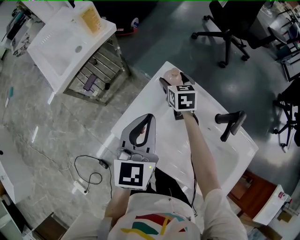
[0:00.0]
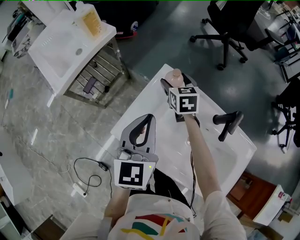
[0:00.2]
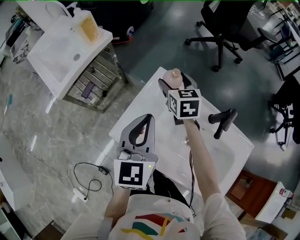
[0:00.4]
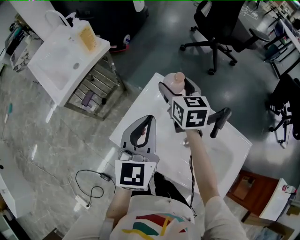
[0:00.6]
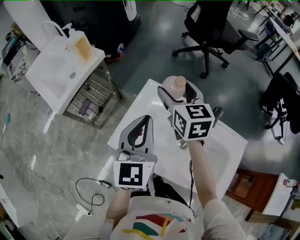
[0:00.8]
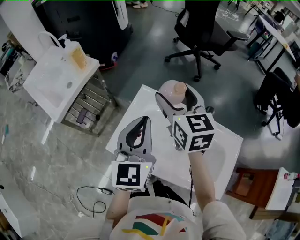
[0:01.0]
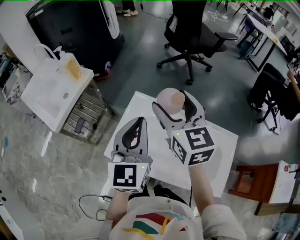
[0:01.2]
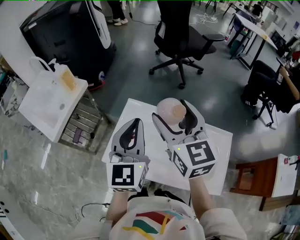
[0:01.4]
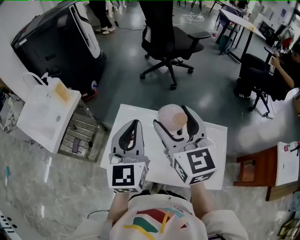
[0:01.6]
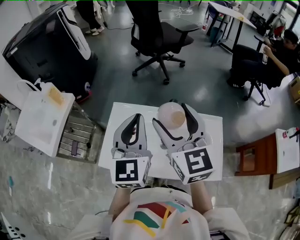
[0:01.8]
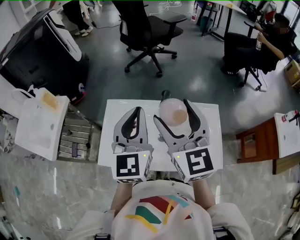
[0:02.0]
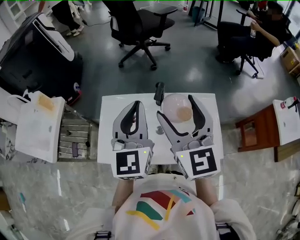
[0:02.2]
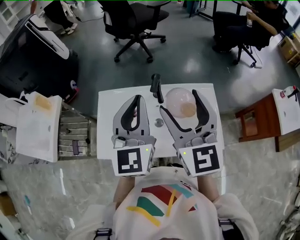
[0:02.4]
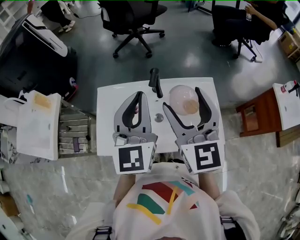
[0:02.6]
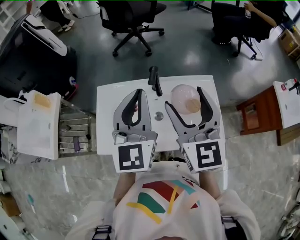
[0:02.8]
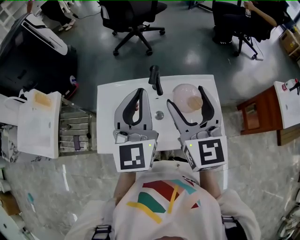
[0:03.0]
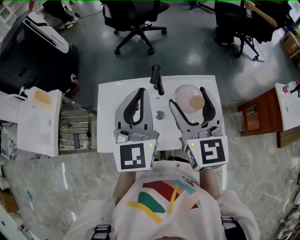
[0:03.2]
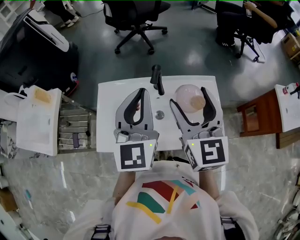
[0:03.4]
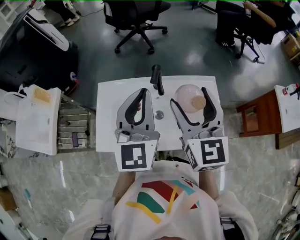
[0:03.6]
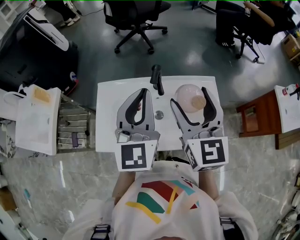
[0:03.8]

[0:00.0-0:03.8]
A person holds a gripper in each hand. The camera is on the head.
0:00.0 to 0:01.2: The left gripper travels upward by some 10 cm. The right gripper goes about 35 cm upward and backward, and changes its angle by approximately 30 degrees.
0:01.2 to 0:02.6: The right gripper changes place by some 25 cm, and turns by roughly 30 degrees. The left gripper shifts by about 15 cm, and changes its angle by roughly 20 degrees.
0:02.6 to 0:03.8: The grippers make only small movements.

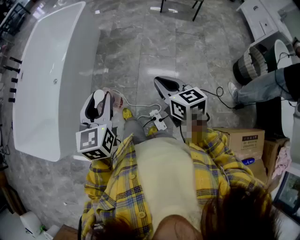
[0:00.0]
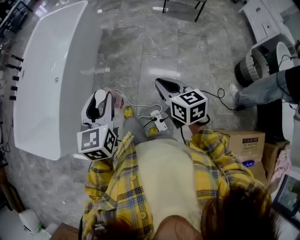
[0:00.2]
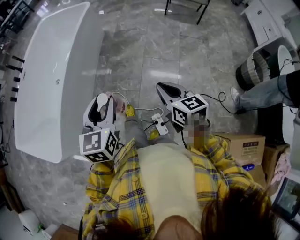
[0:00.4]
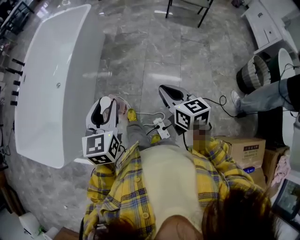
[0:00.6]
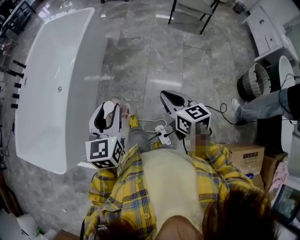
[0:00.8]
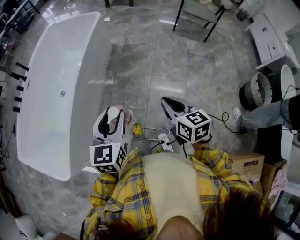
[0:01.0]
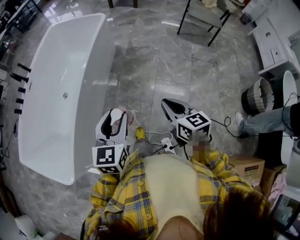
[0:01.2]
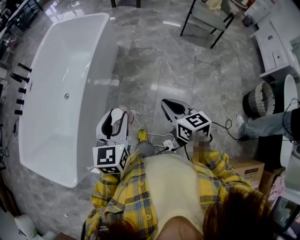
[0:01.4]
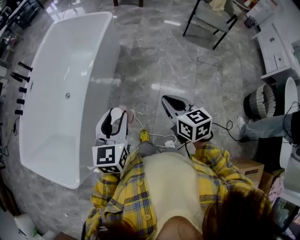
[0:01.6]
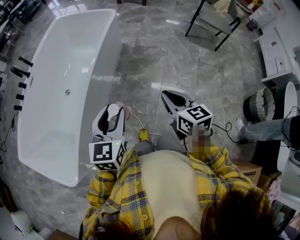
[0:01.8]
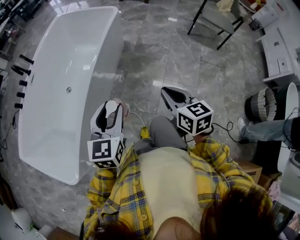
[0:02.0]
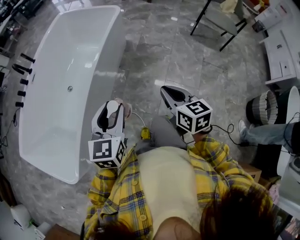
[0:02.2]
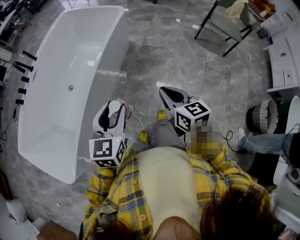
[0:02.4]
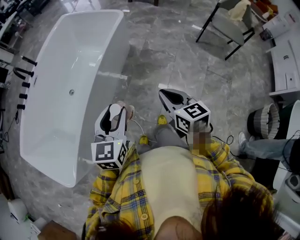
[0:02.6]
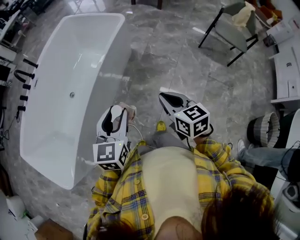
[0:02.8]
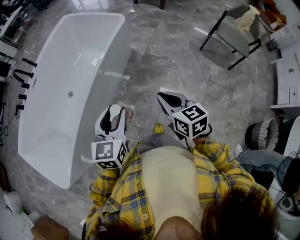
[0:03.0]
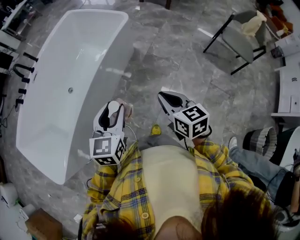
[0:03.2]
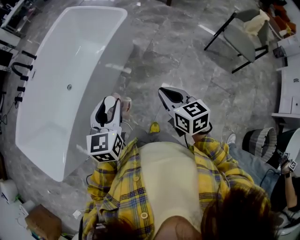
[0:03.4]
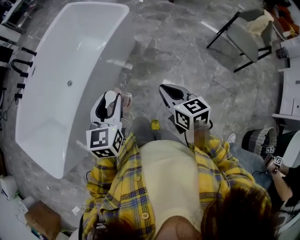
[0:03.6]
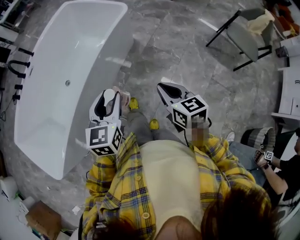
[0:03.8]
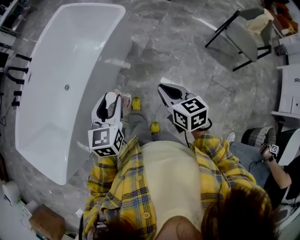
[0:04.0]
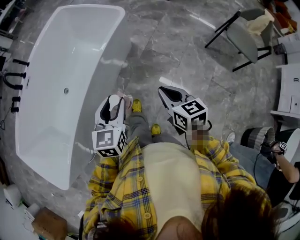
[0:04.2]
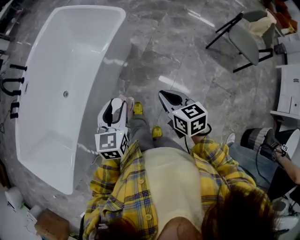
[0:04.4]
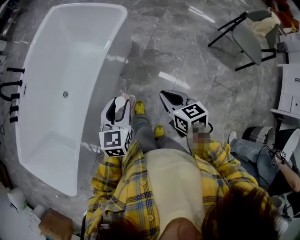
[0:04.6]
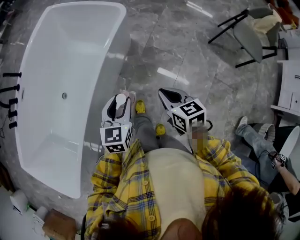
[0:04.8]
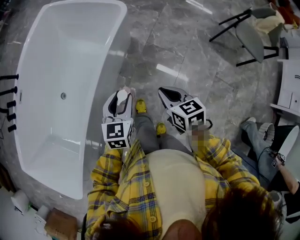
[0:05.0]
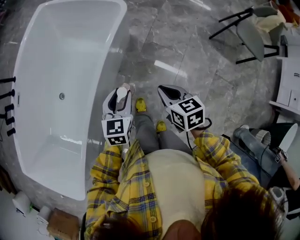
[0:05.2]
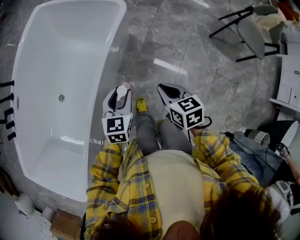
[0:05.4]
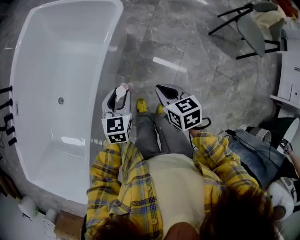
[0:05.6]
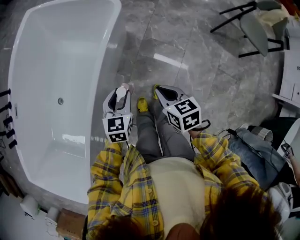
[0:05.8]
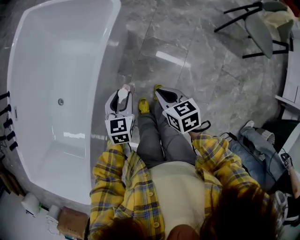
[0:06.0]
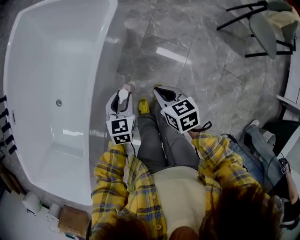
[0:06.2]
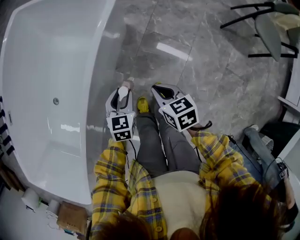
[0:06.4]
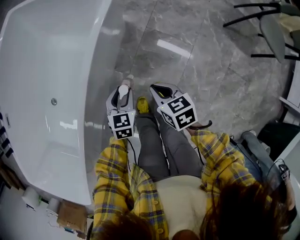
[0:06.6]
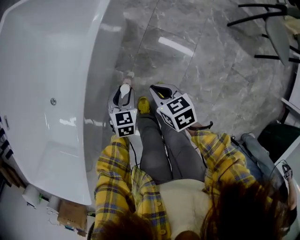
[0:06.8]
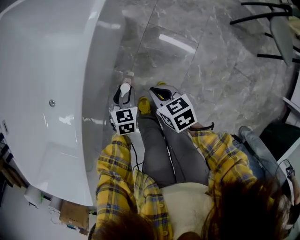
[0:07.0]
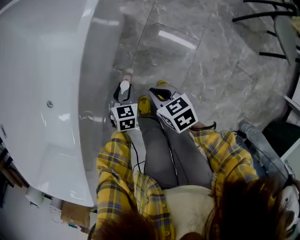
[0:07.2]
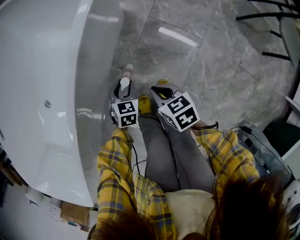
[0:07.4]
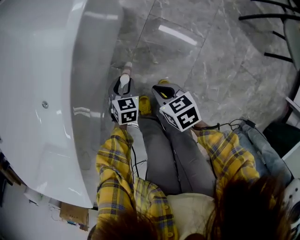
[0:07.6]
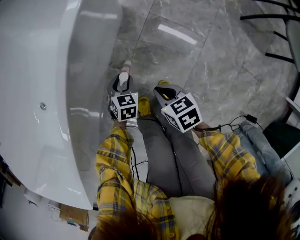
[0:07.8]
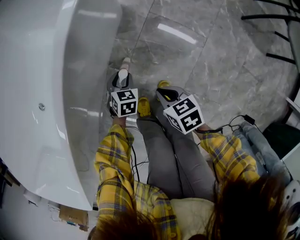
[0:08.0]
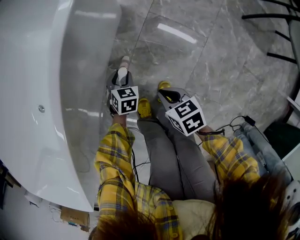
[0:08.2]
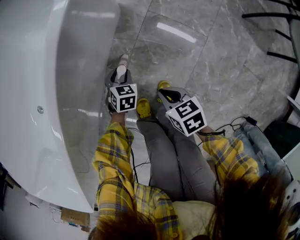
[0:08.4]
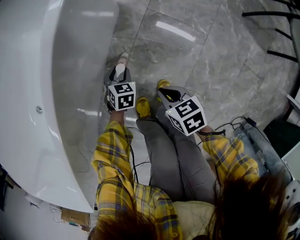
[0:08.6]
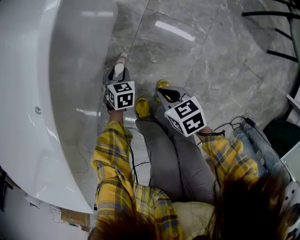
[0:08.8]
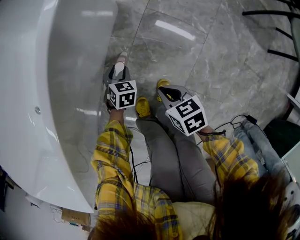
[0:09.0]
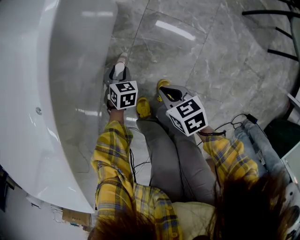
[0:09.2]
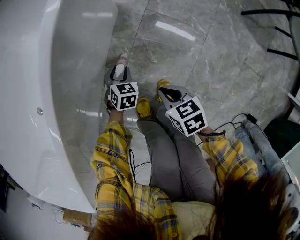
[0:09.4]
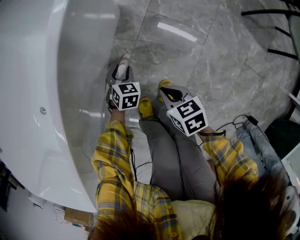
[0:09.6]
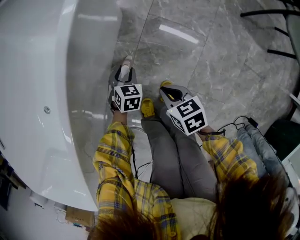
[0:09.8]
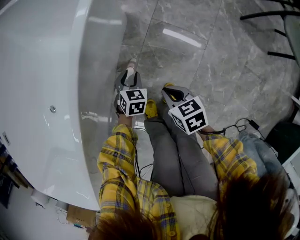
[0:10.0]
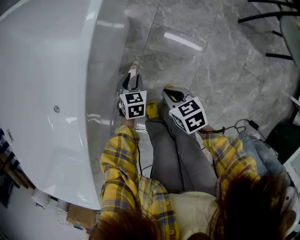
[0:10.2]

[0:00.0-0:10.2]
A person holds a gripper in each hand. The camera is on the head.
0:00.0 to 0:01.4: The left gripper heads forward, covering some 20 cm; the right gripper moves forward and to the left, about 20 cm.
0:01.4 to 0:03.0: The two grippers go some 20 cm forward.
0:03.0 to 0:04.4: Both grippers travel together forward and downward, some 15 cm.
0:04.4 to 0:05.8: Both grippers move downward and forward, roughly 20 cm.
0:05.8 to 0:07.2: Both grippers travel together downward, approximately 25 cm.
0:07.2 to 0:08.8: The two grippers go some 15 cm downward.
0:08.8 to 0:10.2: The right gripper shifts some 5 cm upward, while the left gripper goes approximately 10 cm upward.

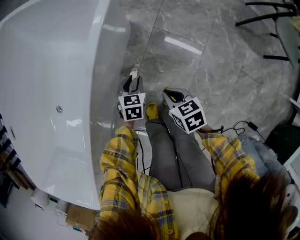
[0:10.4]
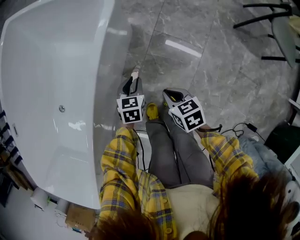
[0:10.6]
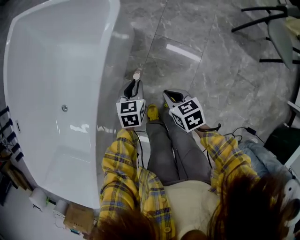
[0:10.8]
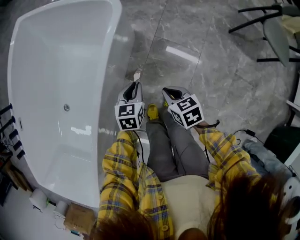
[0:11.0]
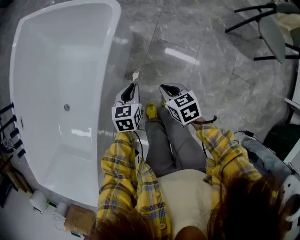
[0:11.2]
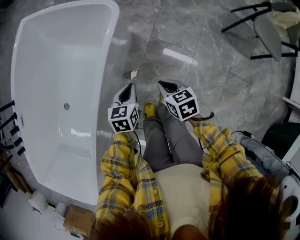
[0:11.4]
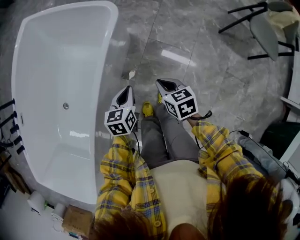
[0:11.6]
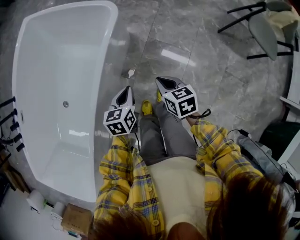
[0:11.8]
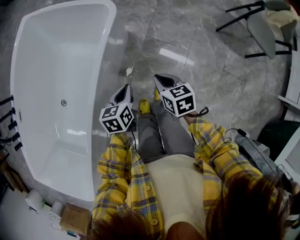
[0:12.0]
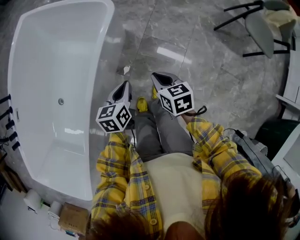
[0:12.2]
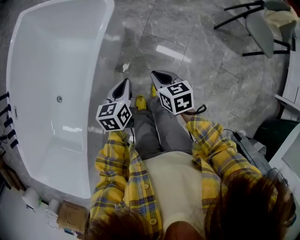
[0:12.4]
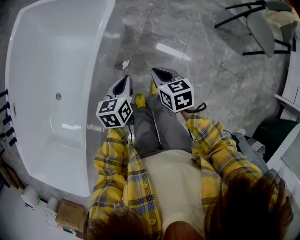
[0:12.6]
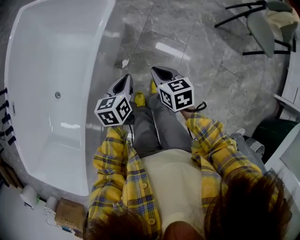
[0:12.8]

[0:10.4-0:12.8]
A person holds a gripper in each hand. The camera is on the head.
0:10.4 to 0:11.6: Both grippers move upward, about 20 cm. The left gripper closes.
0:11.6 to 0:12.8: The grippers stay close to where they were, moving slightly.

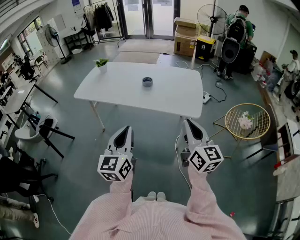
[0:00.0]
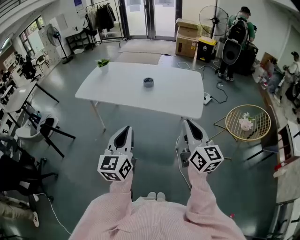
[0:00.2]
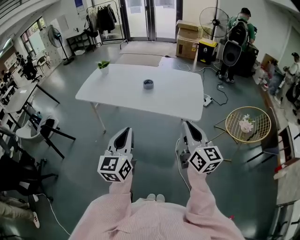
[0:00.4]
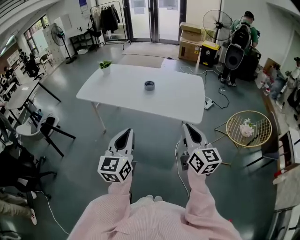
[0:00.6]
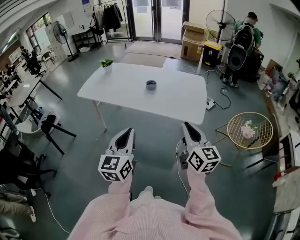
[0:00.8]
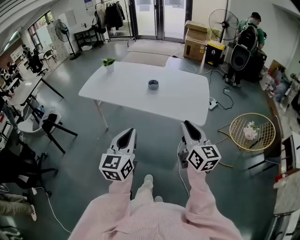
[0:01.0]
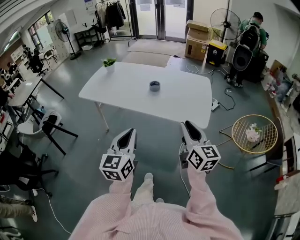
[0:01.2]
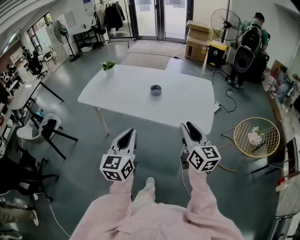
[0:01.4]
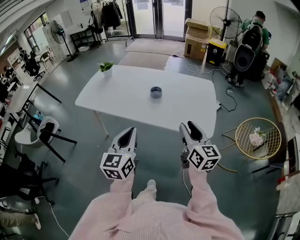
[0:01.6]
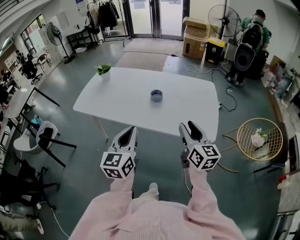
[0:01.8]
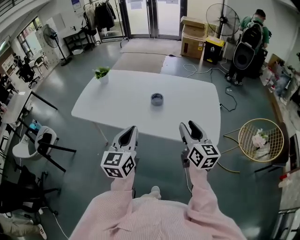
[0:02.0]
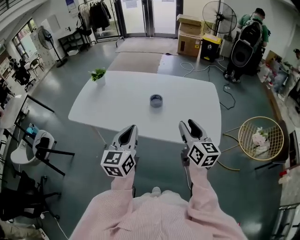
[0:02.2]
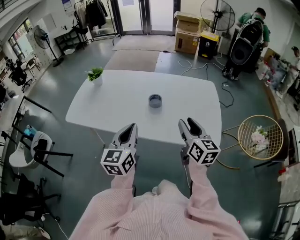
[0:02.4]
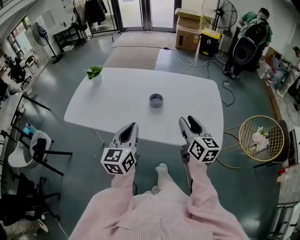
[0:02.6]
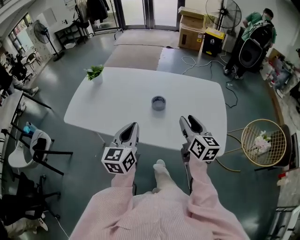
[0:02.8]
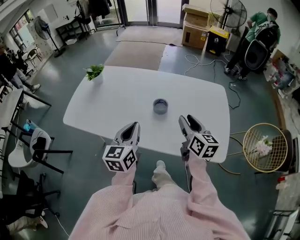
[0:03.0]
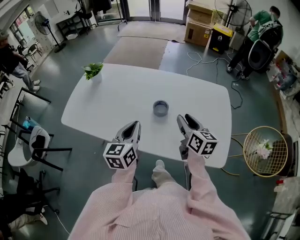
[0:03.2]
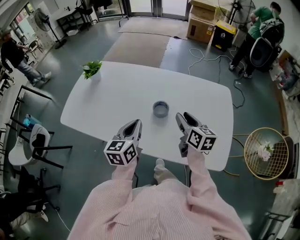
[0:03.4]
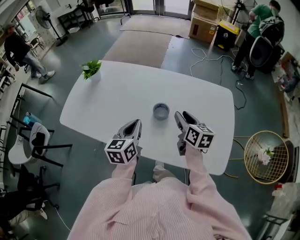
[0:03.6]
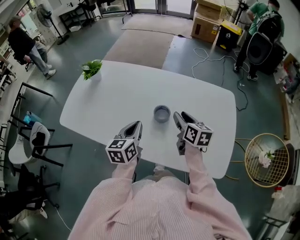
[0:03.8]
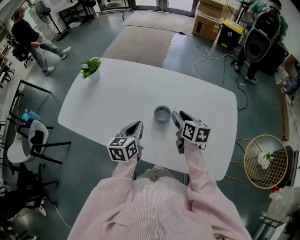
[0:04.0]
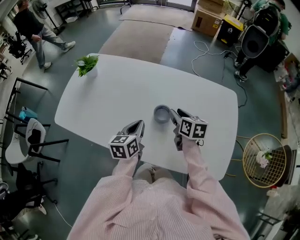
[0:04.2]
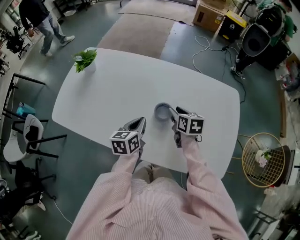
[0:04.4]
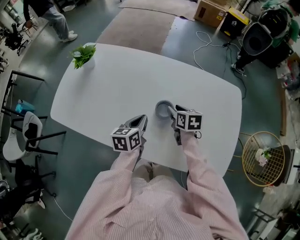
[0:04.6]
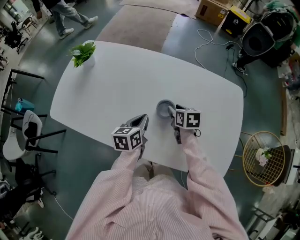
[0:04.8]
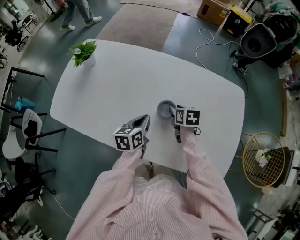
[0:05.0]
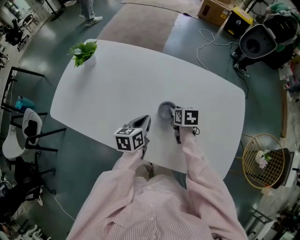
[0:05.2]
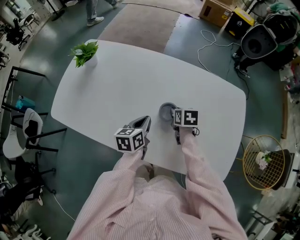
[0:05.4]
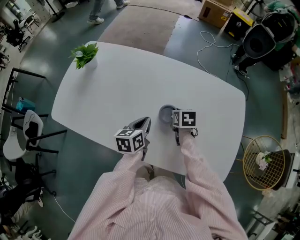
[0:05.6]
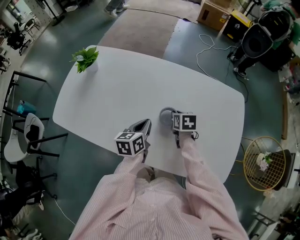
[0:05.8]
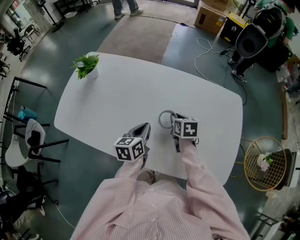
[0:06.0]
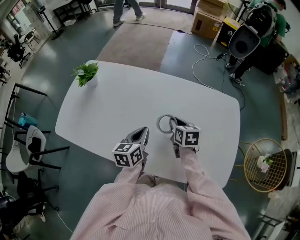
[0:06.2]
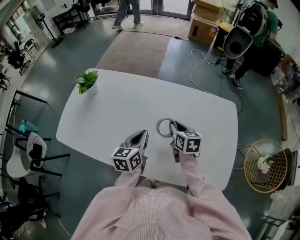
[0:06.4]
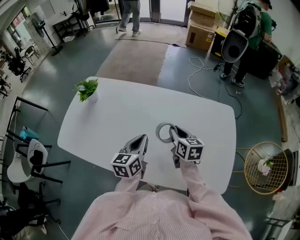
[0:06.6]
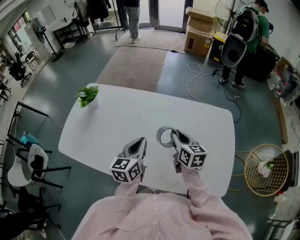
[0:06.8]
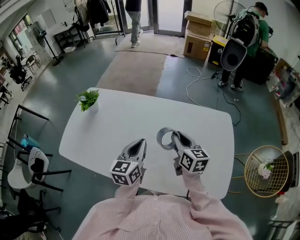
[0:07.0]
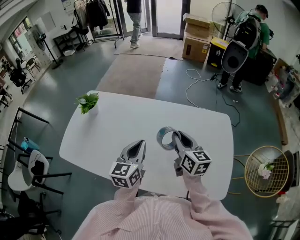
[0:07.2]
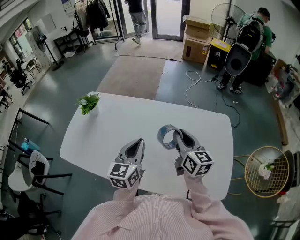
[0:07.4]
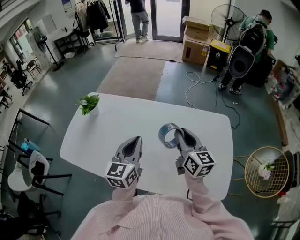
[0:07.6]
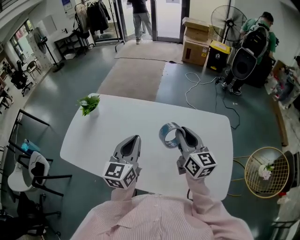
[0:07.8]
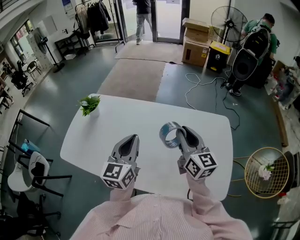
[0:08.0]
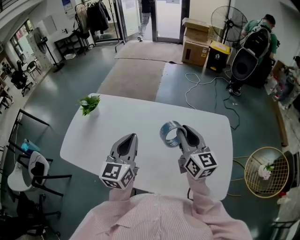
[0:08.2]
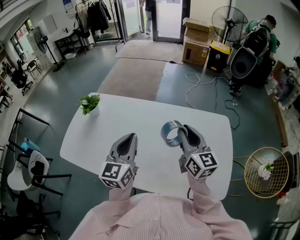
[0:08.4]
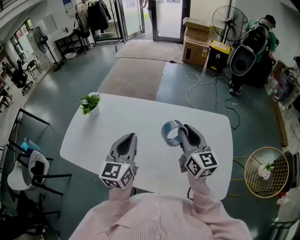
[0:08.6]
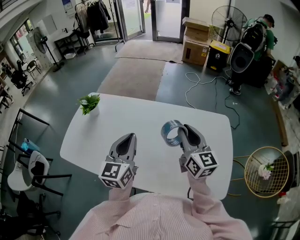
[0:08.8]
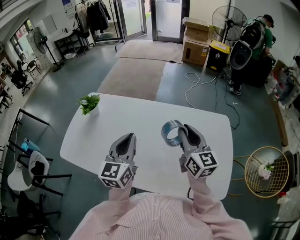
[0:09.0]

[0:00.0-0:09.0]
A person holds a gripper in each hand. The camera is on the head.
0:00.0 to 0:01.6: Both grippers move forward, roughly 15 cm. The right gripper opens its fingers.
0:01.6 to 0:03.0: Both grippers travel together forward, approximately 30 cm.
0:03.0 to 0:04.4: Both grippers move forward and downward, approximately 25 cm. The right gripper swivels approximately 30 degrees; the left gripper swivels approximately 20 degrees.
0:06.0 to 0:07.6: Both grippers travel together upward, about 20 cm. The right gripper tips its fingers upward by roughly 40 degrees. The left gripper turns by roughly 30 degrees.
0:07.6 to 0:09.0: The grippers stay close to where they were, moving slightly.
